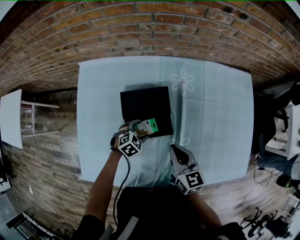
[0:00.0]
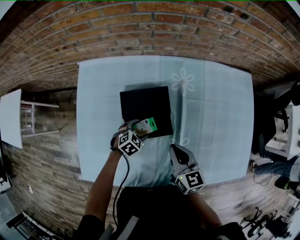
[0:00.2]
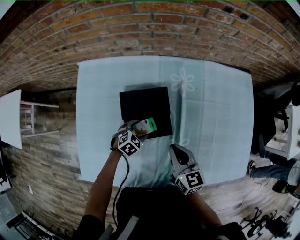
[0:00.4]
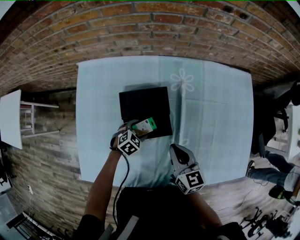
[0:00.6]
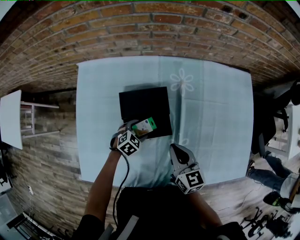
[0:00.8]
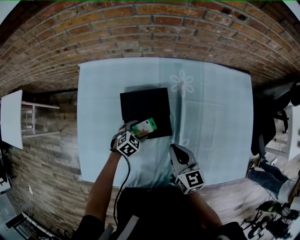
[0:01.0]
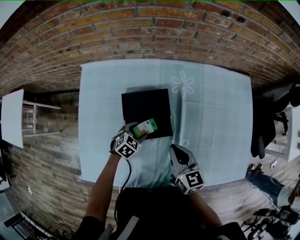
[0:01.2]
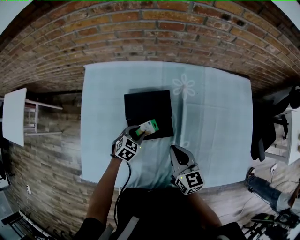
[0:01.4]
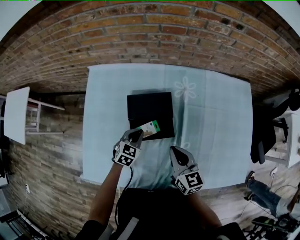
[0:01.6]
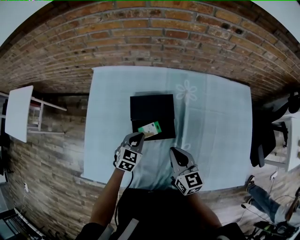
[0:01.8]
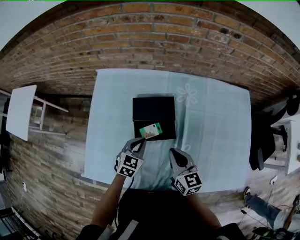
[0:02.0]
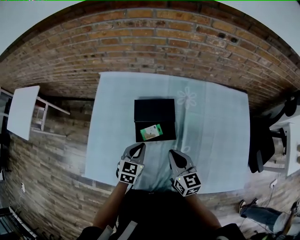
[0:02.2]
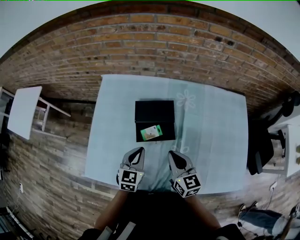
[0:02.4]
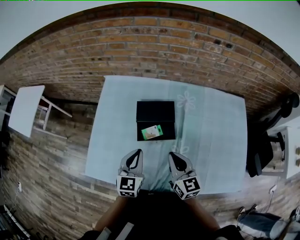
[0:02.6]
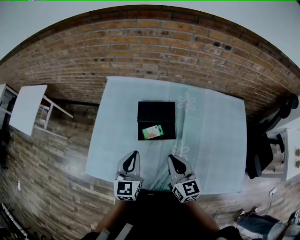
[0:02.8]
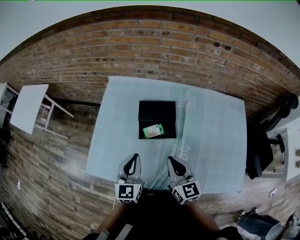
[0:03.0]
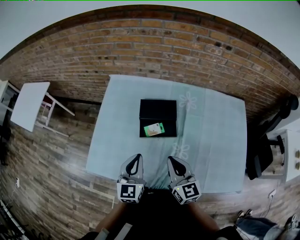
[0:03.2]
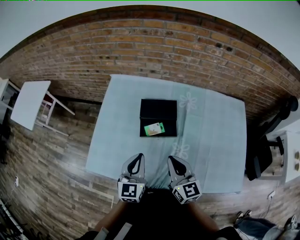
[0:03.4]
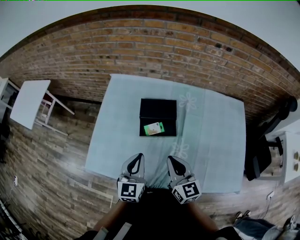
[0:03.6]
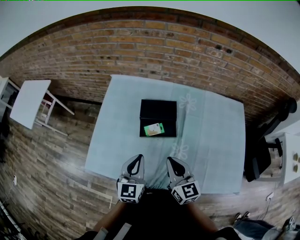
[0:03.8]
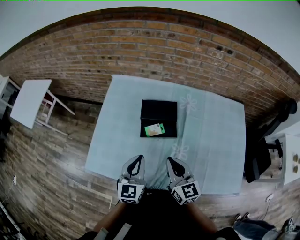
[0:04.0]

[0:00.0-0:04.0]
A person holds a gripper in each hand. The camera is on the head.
0:00.0 to 0:01.4: The left gripper closes up.
0:01.4 to 0:02.6: The right gripper is displaced upward and backward by approximately 10 cm, while the left gripper shifts about 25 cm upward and backward, tilts its fingers approximately 30 degrees upward, and closes its fingers.
0:02.6 to 0:04.0: The grippers both shift backward by roughly 5 cm.

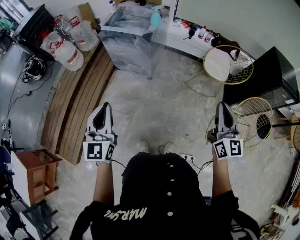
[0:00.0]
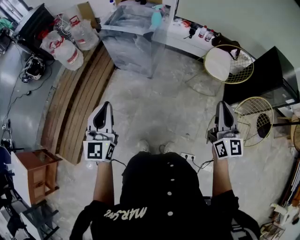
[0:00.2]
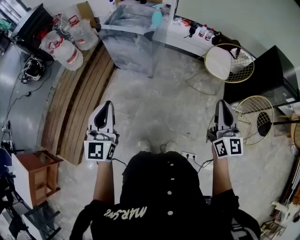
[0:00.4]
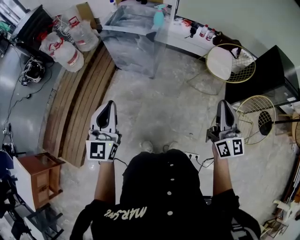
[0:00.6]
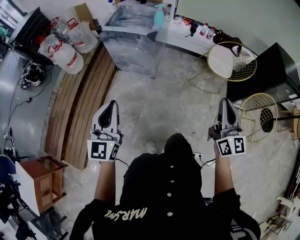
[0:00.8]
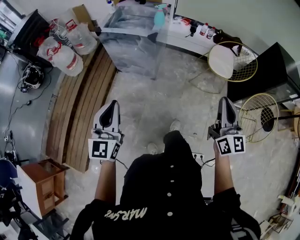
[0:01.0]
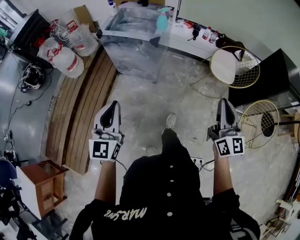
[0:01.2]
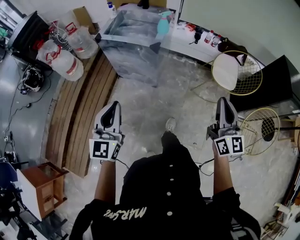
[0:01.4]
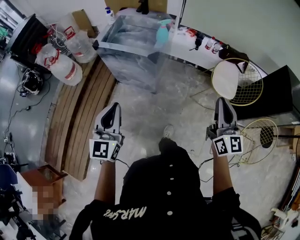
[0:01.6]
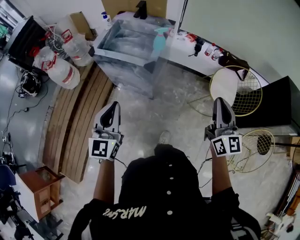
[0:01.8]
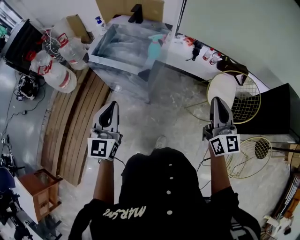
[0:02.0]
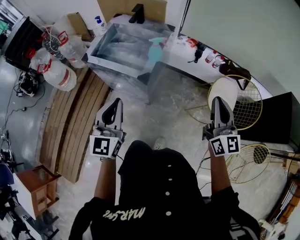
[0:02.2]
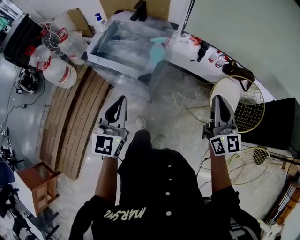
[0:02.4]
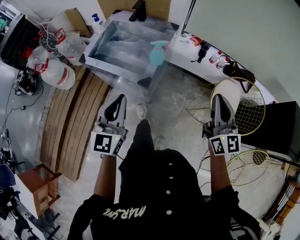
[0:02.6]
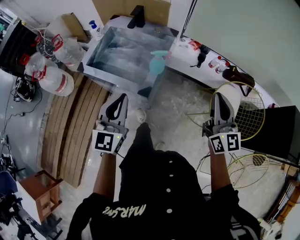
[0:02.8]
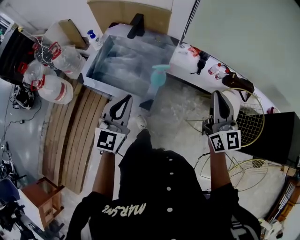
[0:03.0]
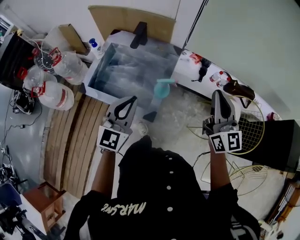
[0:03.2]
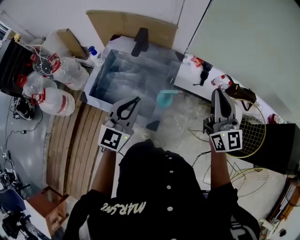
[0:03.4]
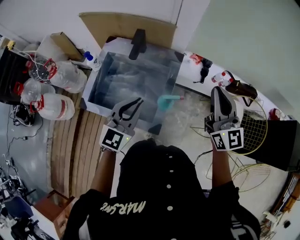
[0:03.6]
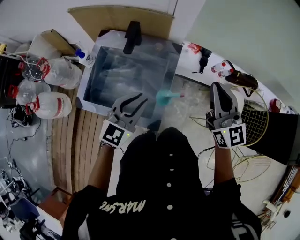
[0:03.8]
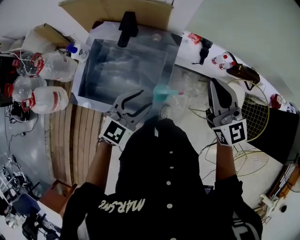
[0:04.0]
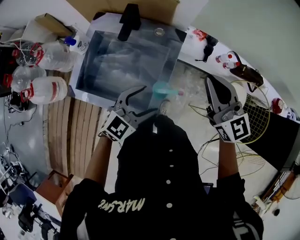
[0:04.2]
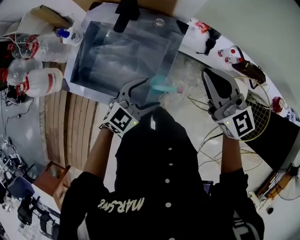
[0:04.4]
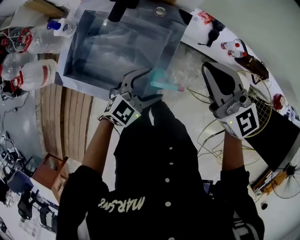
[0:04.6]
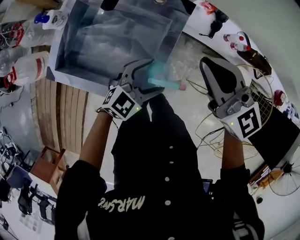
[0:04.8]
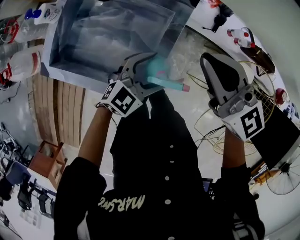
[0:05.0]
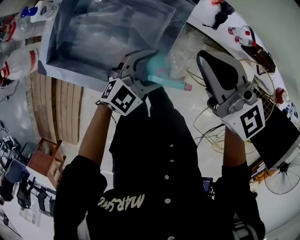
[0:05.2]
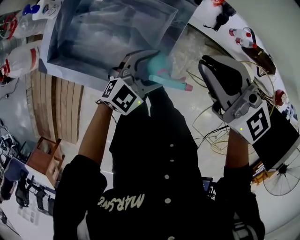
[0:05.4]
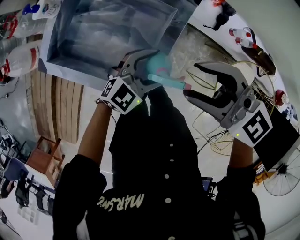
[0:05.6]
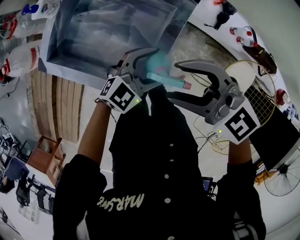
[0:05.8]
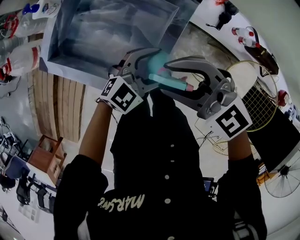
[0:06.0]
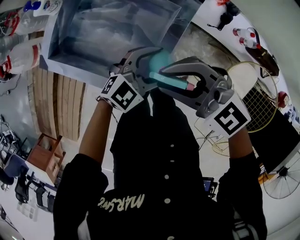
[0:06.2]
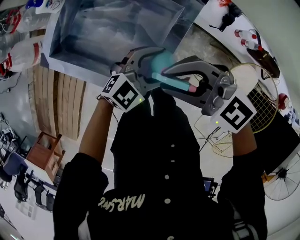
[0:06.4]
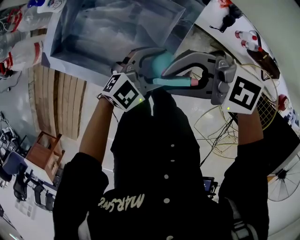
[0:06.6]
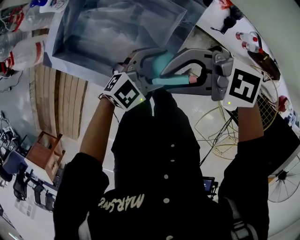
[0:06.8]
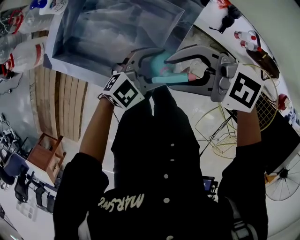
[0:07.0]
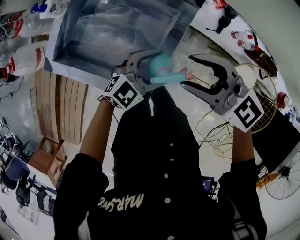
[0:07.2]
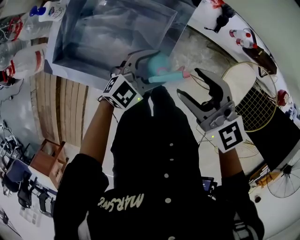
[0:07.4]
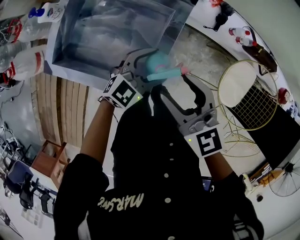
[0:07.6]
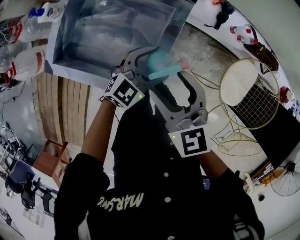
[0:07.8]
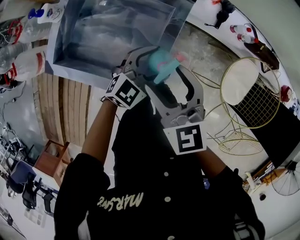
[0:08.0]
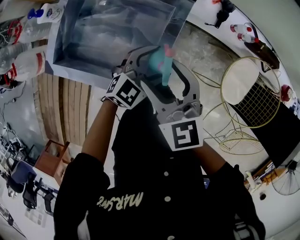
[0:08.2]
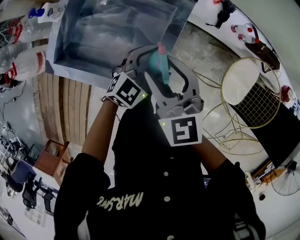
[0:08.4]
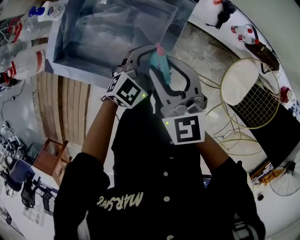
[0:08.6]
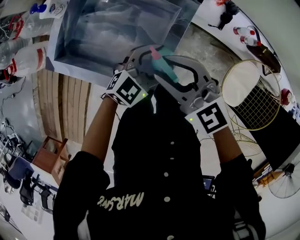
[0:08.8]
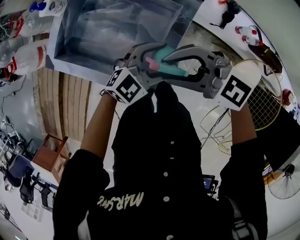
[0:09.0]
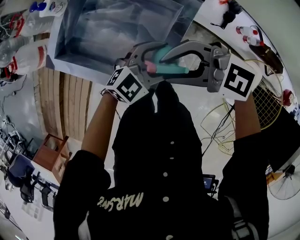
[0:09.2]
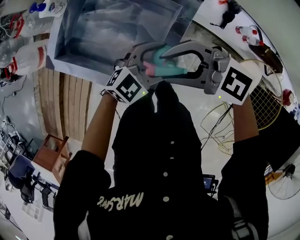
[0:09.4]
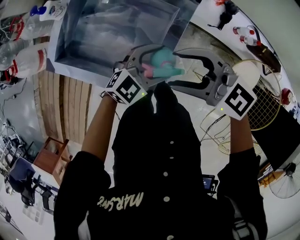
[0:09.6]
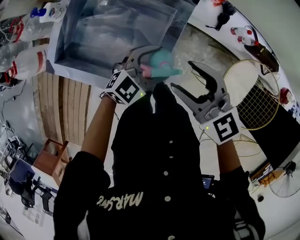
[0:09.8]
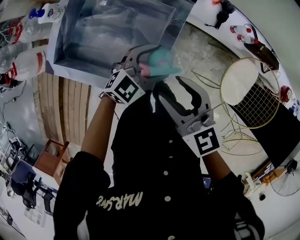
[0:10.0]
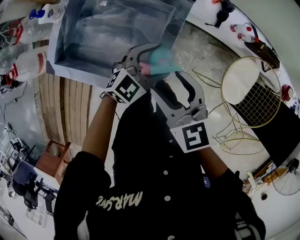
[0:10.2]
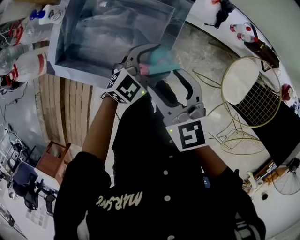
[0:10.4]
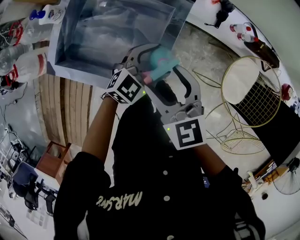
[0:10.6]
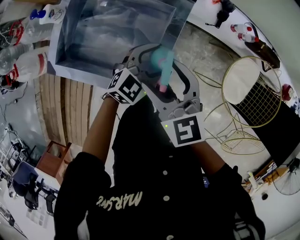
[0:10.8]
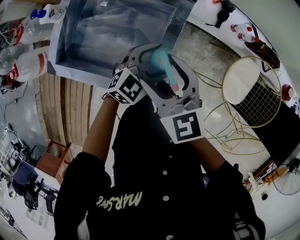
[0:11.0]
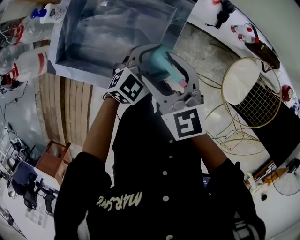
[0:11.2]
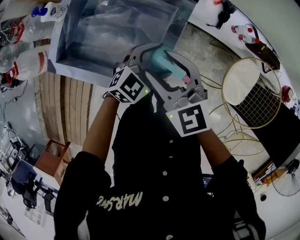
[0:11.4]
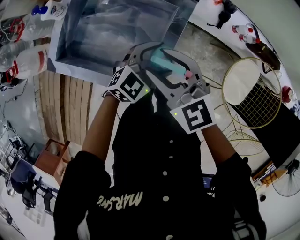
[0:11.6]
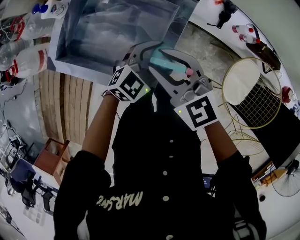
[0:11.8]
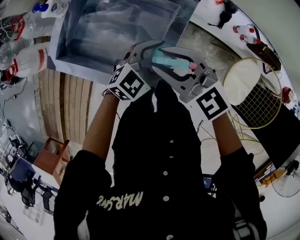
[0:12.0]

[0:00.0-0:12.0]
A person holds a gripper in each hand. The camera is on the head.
0:00.0 to 0:01.6: The two grippers go about 25 cm forward.
0:01.6 to 0:03.0: The grippers both shift forward by some 35 cm.
0:03.0 to 0:04.4: The right gripper moves forward and to the left, some 20 cm, and turns by approximately 30 degrees, while the left gripper is displaced downward and forward by approximately 20 cm, turns by about 40 degrees, and opens its fingers.
0:04.4 to 0:06.0: The right gripper moves roughly 15 cm, rotates some 40 degrees, and opens. Meanwhile the left gripper moves downward, approximately 10 cm.
0:06.0 to 0:07.6: The right gripper rotates about 40 degrees.
0:07.6 to 0:09.0: The right gripper changes its angle by roughly 60 degrees.
0:09.0 to 0:10.4: The right gripper turns by about 60 degrees, and opens its fingers.
0:10.4 to 0:12.0: The right gripper changes its angle by some 30 degrees, and closes up.

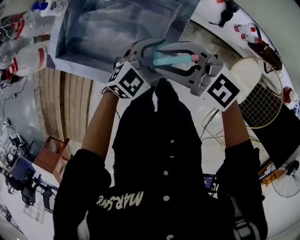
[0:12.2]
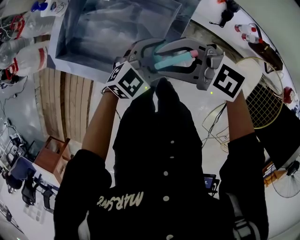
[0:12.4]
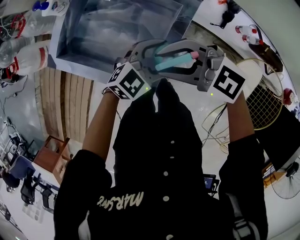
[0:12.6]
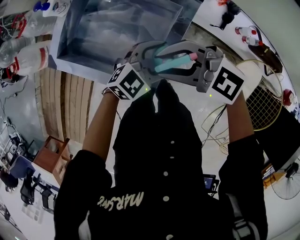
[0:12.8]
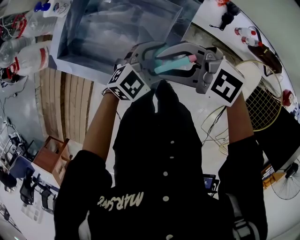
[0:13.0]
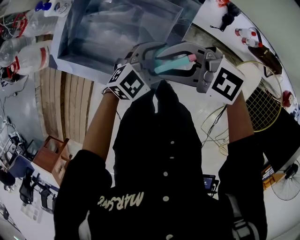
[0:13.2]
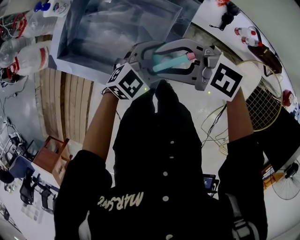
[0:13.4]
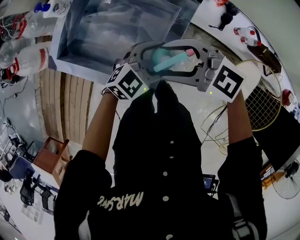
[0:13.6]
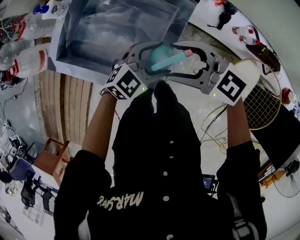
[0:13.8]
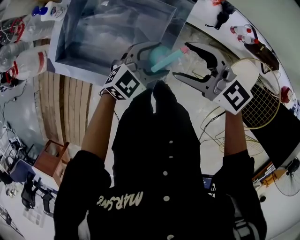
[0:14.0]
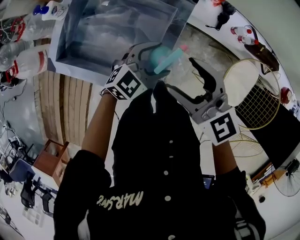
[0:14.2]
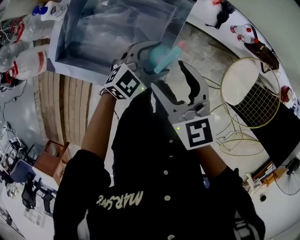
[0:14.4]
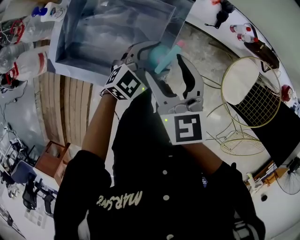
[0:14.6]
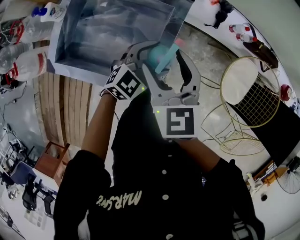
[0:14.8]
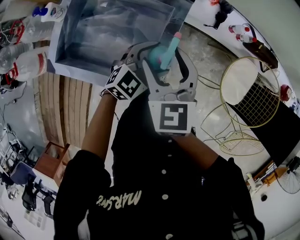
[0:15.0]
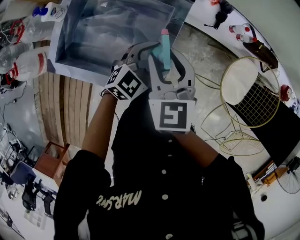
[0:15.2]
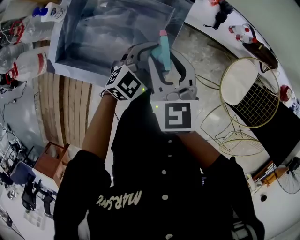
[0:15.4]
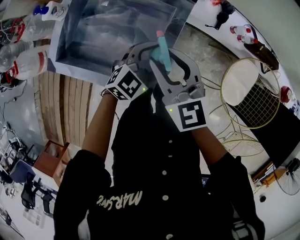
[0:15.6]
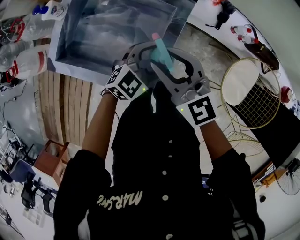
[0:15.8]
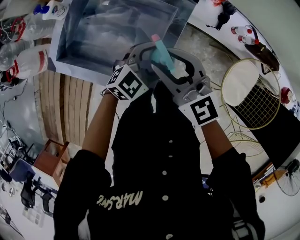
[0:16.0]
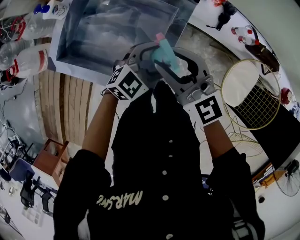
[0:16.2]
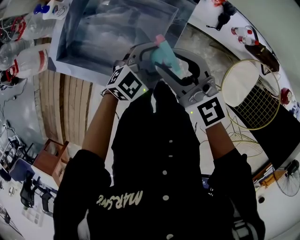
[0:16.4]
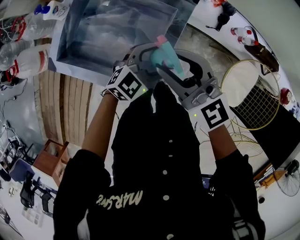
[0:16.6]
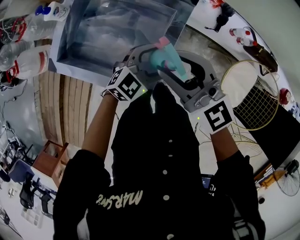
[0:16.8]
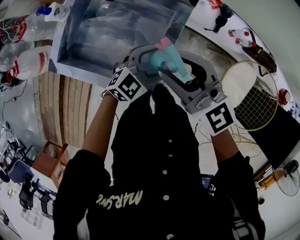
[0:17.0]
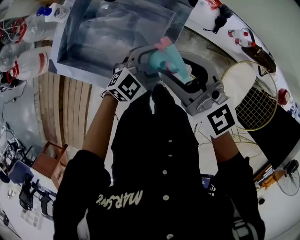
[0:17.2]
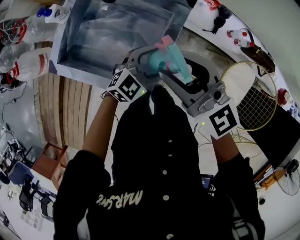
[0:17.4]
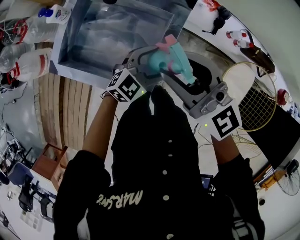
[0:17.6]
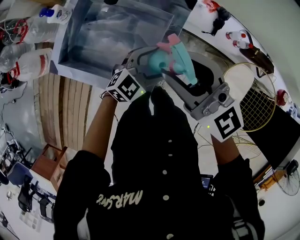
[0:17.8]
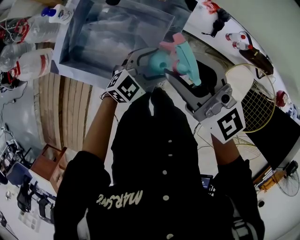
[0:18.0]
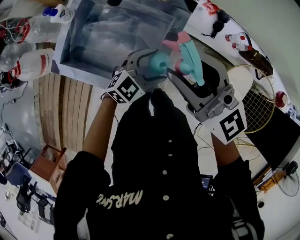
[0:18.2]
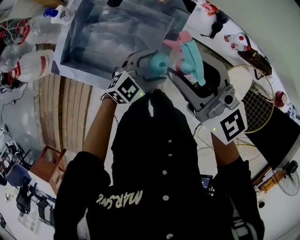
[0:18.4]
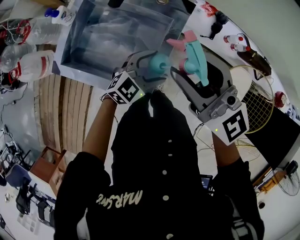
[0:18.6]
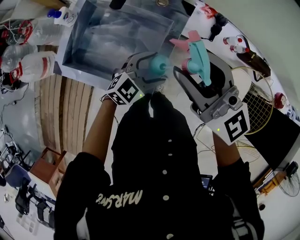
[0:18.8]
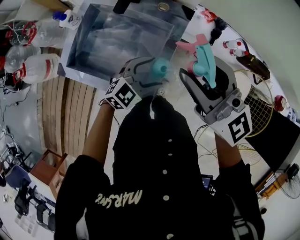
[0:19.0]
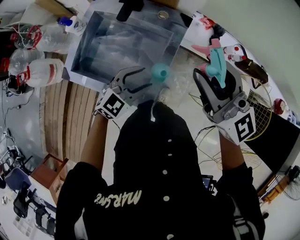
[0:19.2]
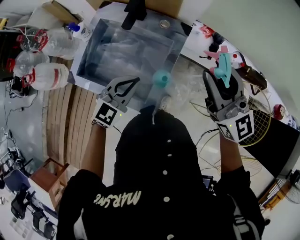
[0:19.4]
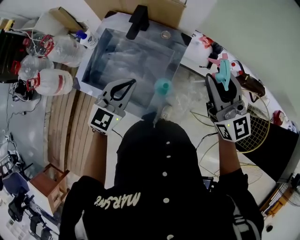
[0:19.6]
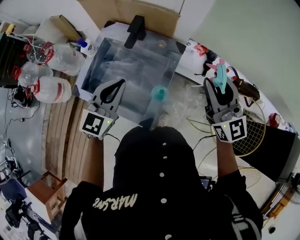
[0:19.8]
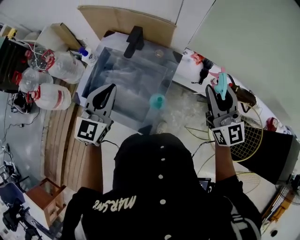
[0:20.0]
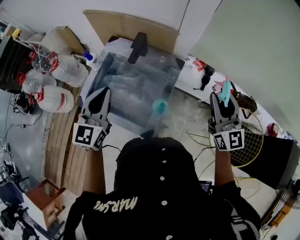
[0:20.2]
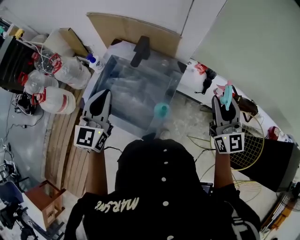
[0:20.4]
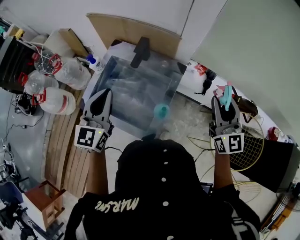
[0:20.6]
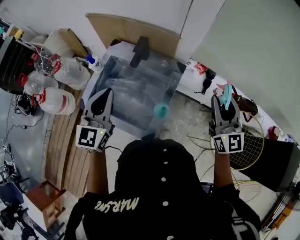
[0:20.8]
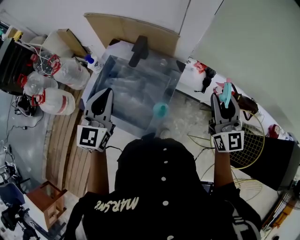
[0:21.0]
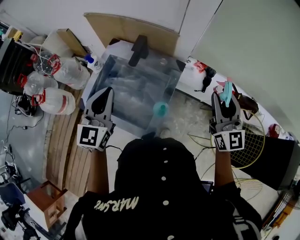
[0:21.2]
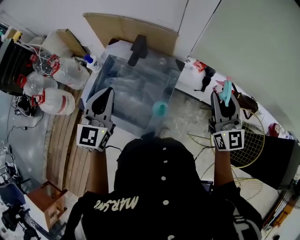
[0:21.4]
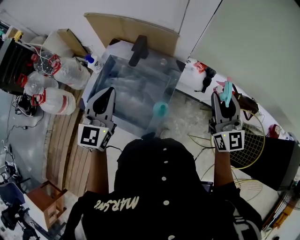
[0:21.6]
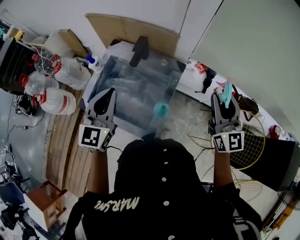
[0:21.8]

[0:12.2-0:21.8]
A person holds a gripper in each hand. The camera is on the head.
0:12.2 to 0:13.8: The right gripper opens up.
0:13.8 to 0:15.4: The right gripper swivels approximately 60 degrees, and closes.
0:15.4 to 0:17.0: The right gripper travels upward by some 5 cm, and swivels approximately 40 degrees.
0:17.0 to 0:18.6: The right gripper heads upward, covering about 10 cm.
0:18.6 to 0:20.2: The left gripper goes approximately 35 cm upward and to the left, changes its angle by about 50 degrees, and closes, while the right gripper goes some 15 cm to the right, and rotates about 30 degrees.
0:20.2 to 0:21.8: The grippers stay close to where they were, moving slightly.
